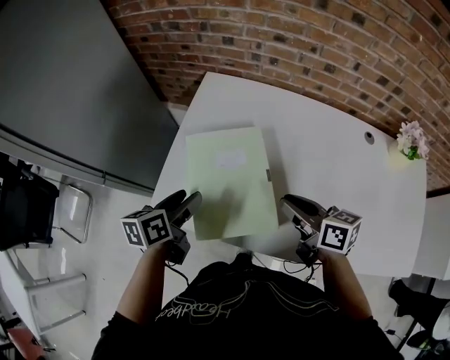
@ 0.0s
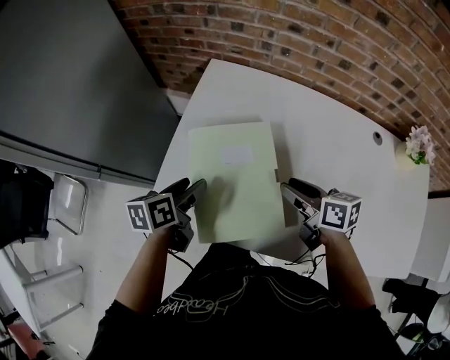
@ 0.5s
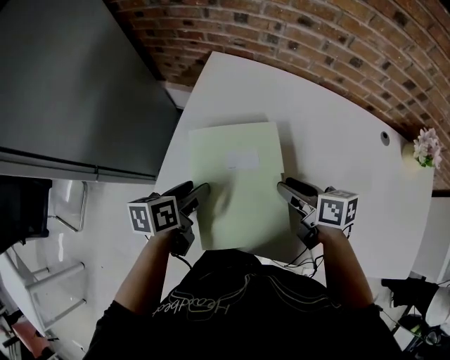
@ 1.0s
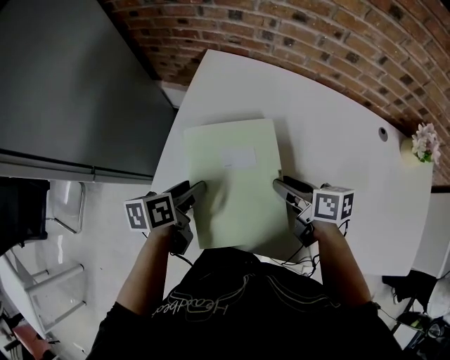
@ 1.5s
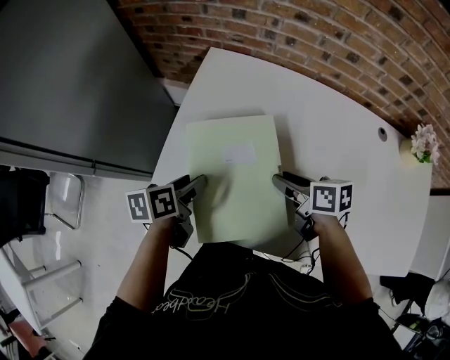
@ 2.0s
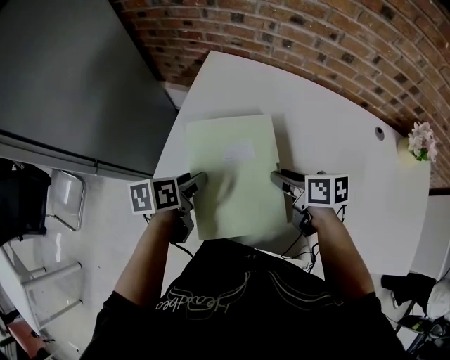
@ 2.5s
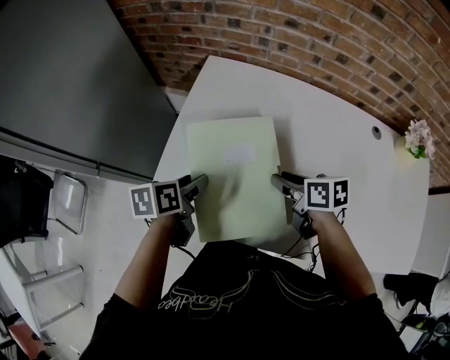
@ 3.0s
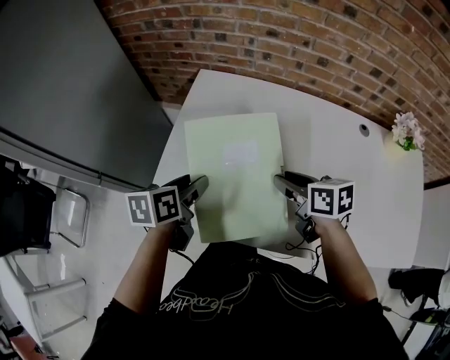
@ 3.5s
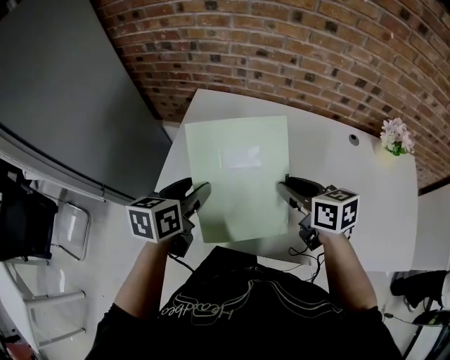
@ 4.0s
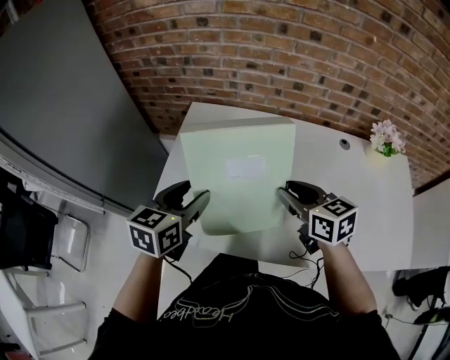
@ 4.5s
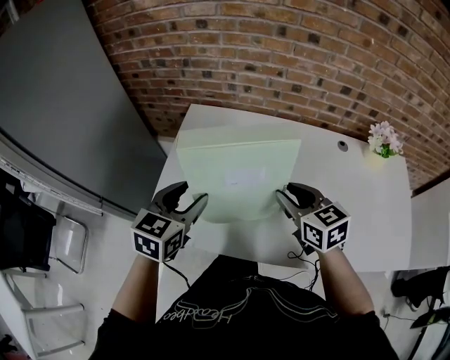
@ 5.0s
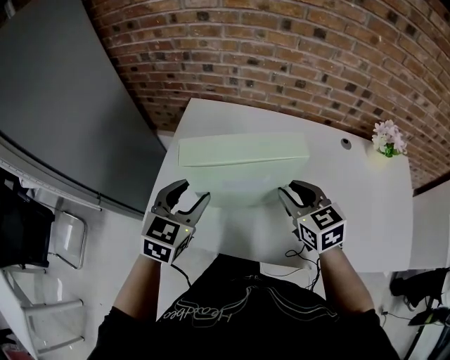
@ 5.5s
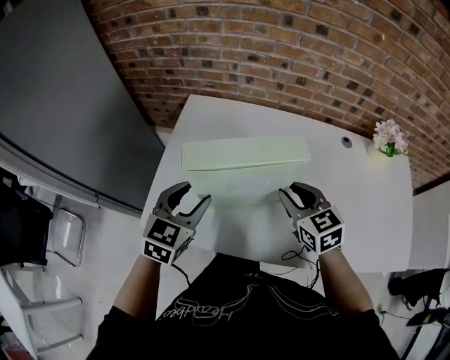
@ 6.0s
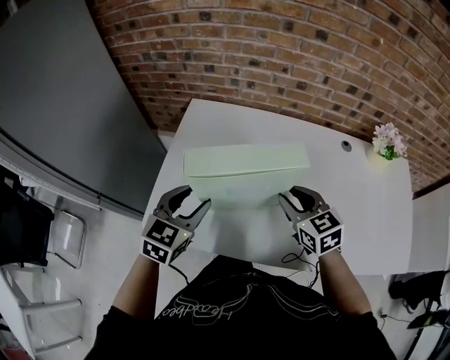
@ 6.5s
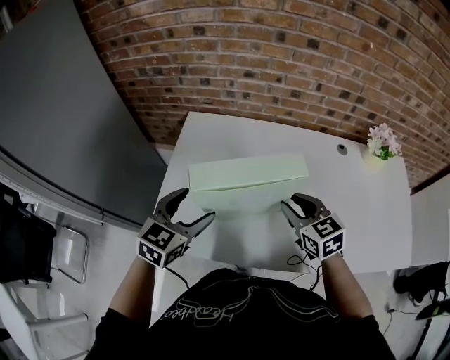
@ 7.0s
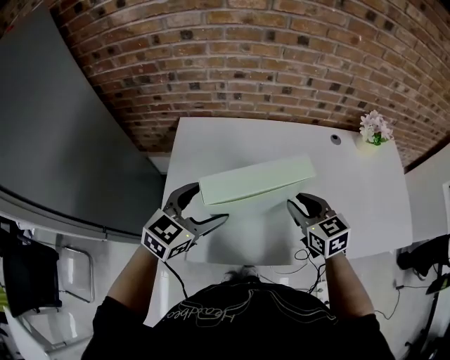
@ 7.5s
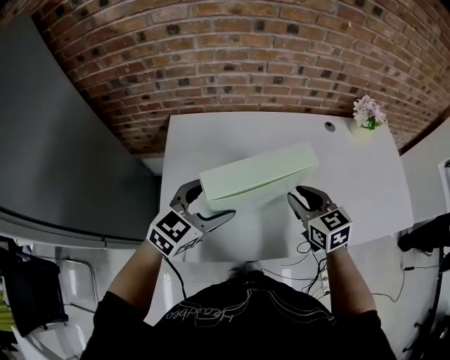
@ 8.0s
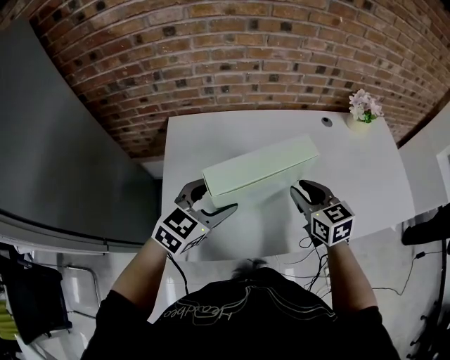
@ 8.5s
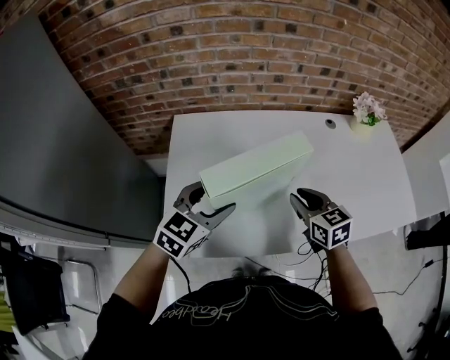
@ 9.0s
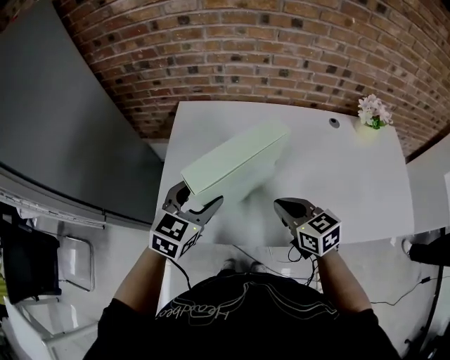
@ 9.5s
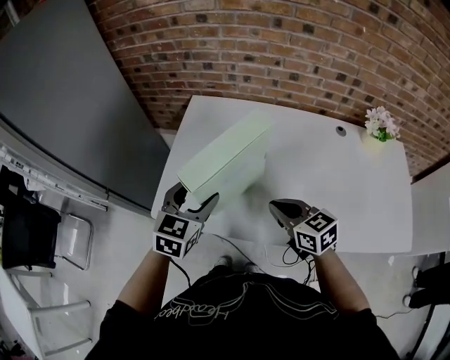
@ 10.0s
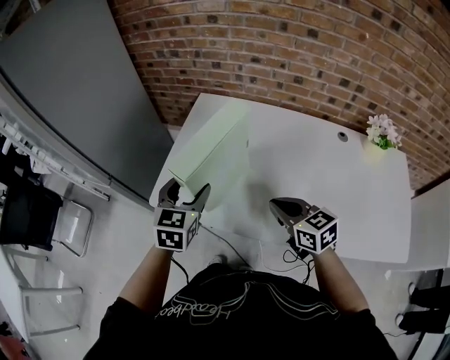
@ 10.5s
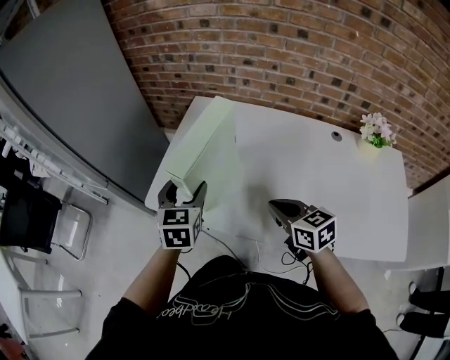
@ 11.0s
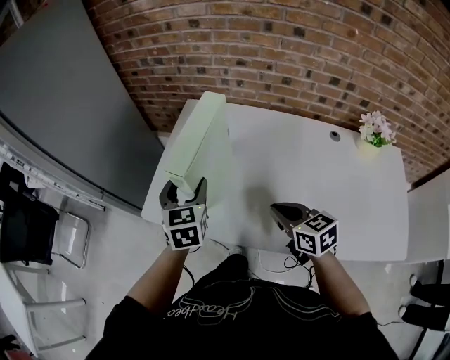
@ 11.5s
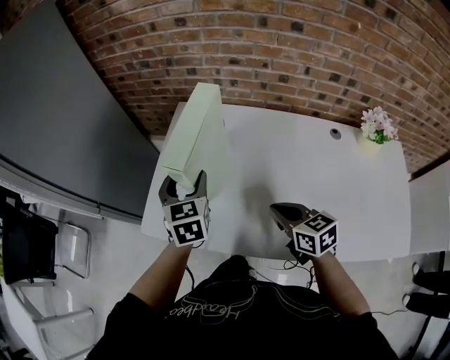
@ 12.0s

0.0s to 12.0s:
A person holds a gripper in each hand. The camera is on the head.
0.0s to 2.0s: The left gripper shifts some 5 cm downward, while the right gripper heads downward and forward, covering some 10 cm, and opens up.
2.0s to 4.0s: Both grippers move upward and to the right, some 15 cm. The left gripper swivels roughly 30 degrees, while the right gripper changes its angle by some 20 degrees.
4.0s to 6.0s: The left gripper rotates about 40 degrees. Meanwhile the right gripper changes its angle by roughly 30 degrees.
6.0s to 8.0s: The left gripper turns by roughly 30 degrees, and opens up.
8.0s to 10.0s: The right gripper ends up about 10 cm from where it was, rotates roughly 30 degrees, and closes its fingers; the left gripper shifts by about 5 cm, and swivels some 40 degrees.
10.0s to 12.0s: The right gripper shifts about 5 cm to the right; the left gripper is displaced forward by approximately 10 cm, and swivels some 30 degrees.

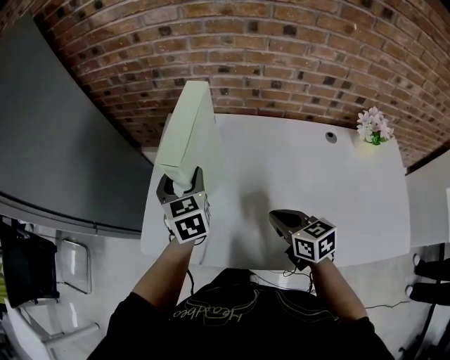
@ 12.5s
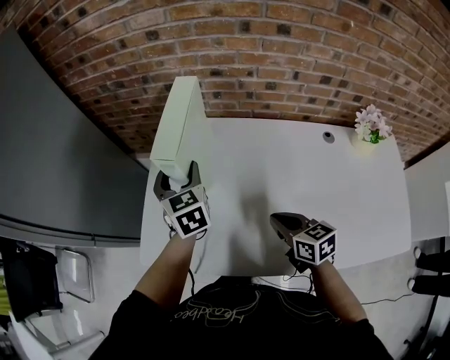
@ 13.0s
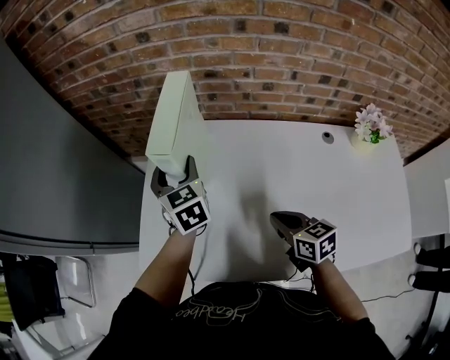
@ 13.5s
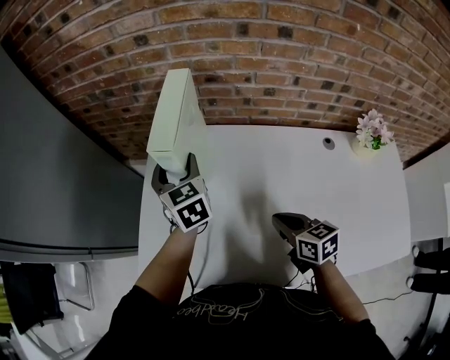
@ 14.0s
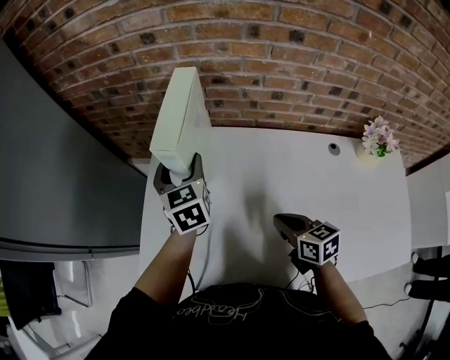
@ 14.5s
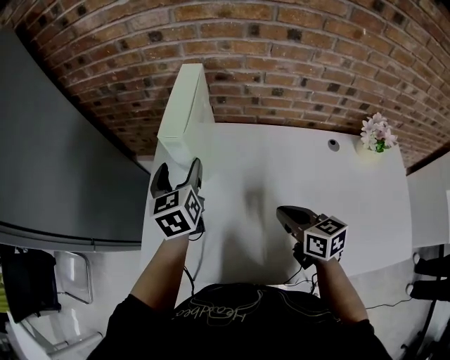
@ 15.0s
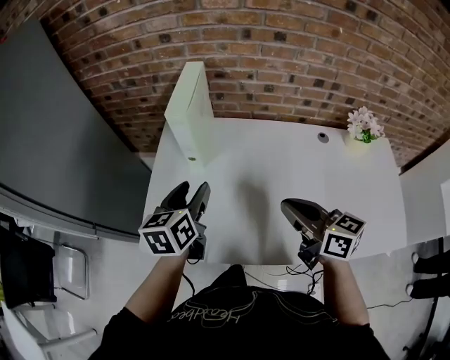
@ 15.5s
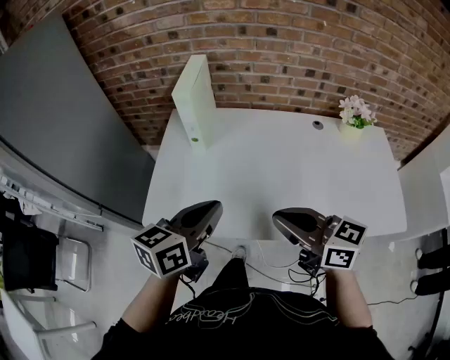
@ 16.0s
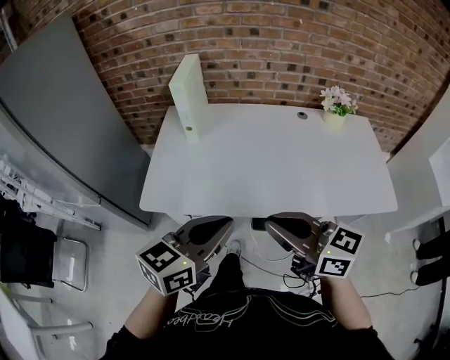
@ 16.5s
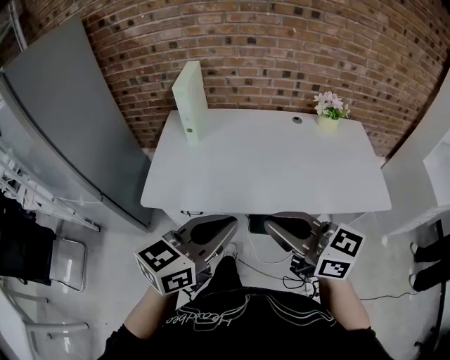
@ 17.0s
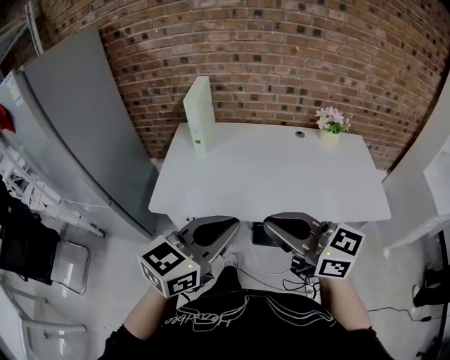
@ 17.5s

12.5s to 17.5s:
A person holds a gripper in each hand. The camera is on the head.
12.5s to 15.0s: The left gripper travels forward by some 5 cm. Meanwhile the right gripper ends up approximately 5 cm from where it was.
15.0s to 17.5s: The left gripper heads backward, covering approximately 50 cm, rotates approximately 50 degrees, and closes up, while the right gripper travels backward and upward by roughly 40 cm, and turns by some 40 degrees.

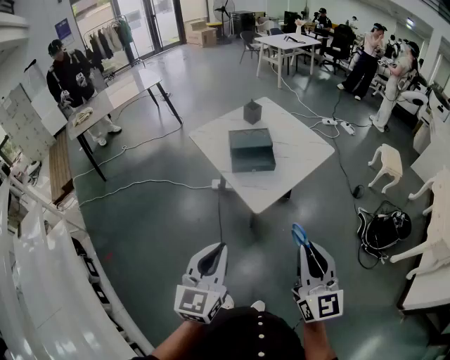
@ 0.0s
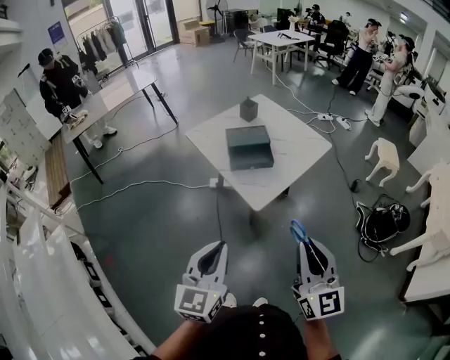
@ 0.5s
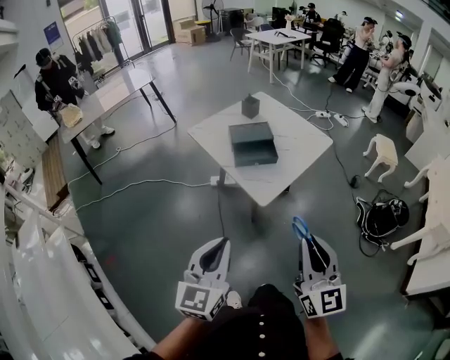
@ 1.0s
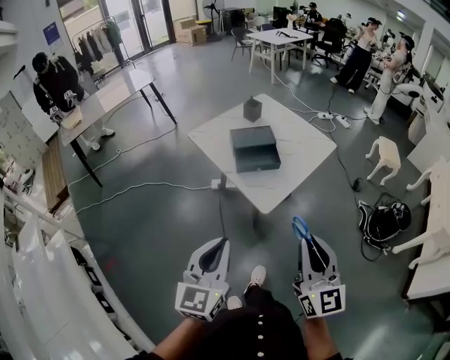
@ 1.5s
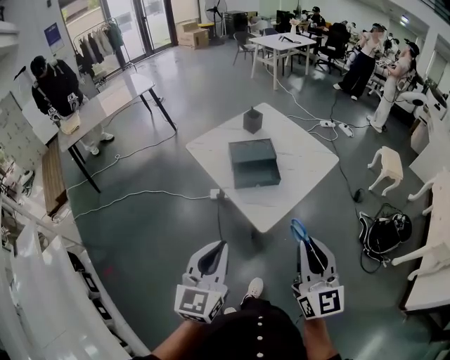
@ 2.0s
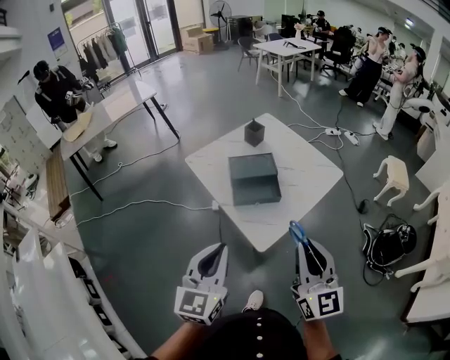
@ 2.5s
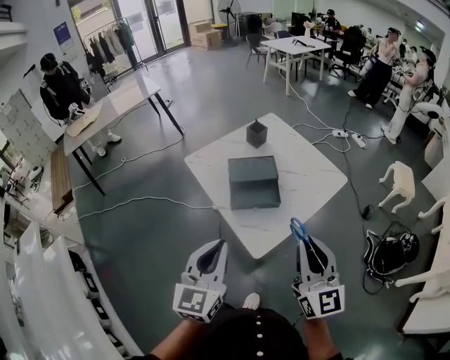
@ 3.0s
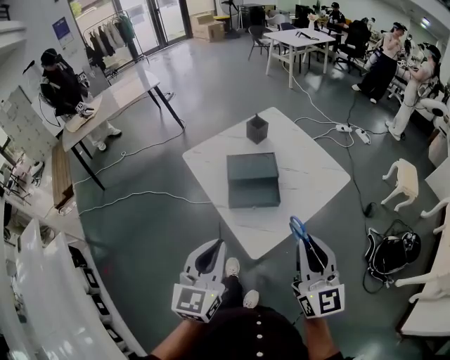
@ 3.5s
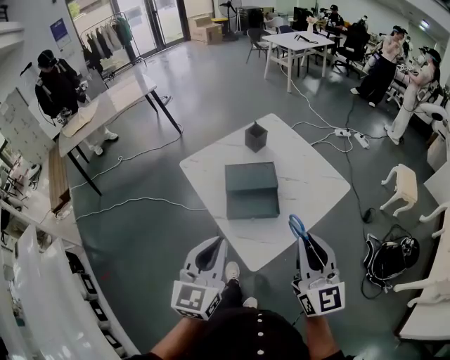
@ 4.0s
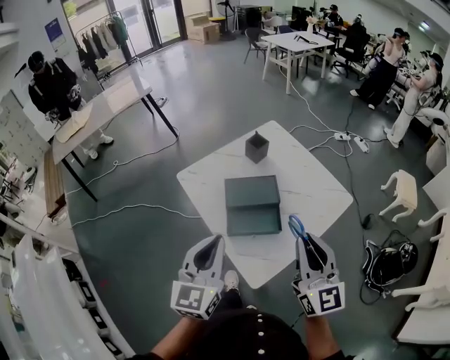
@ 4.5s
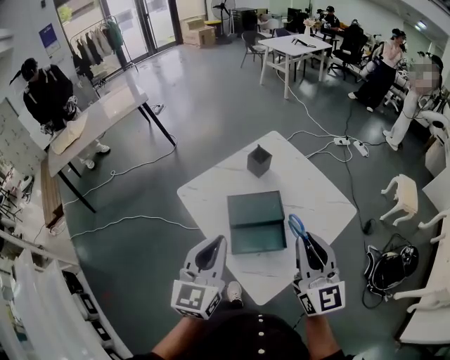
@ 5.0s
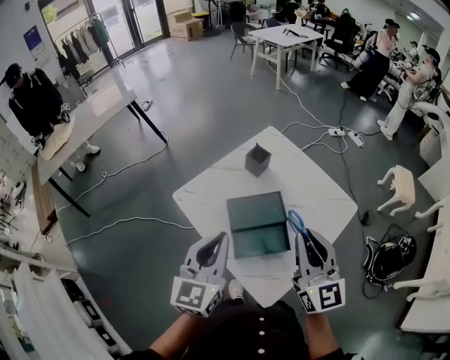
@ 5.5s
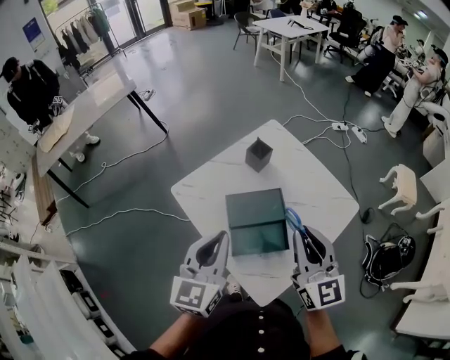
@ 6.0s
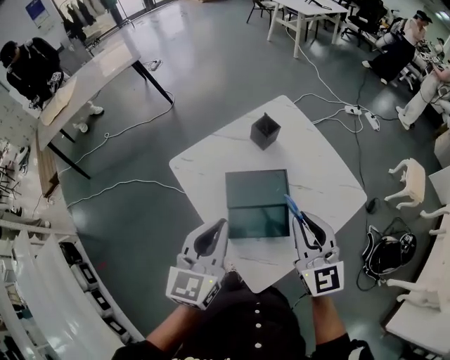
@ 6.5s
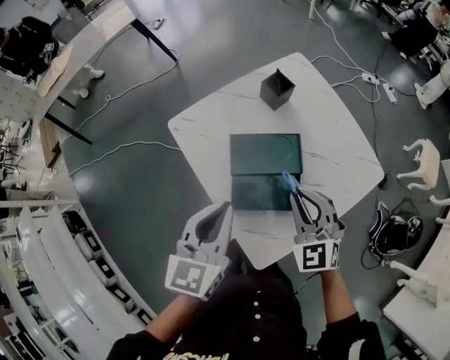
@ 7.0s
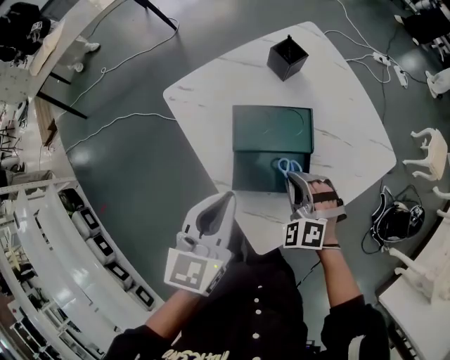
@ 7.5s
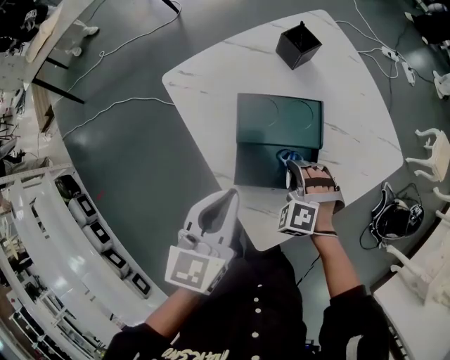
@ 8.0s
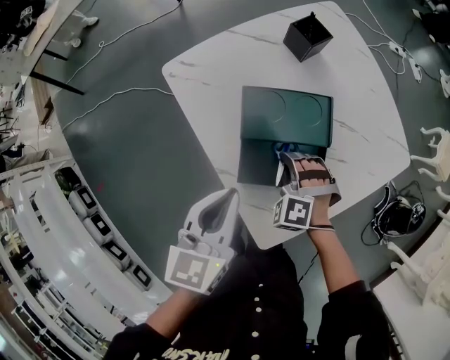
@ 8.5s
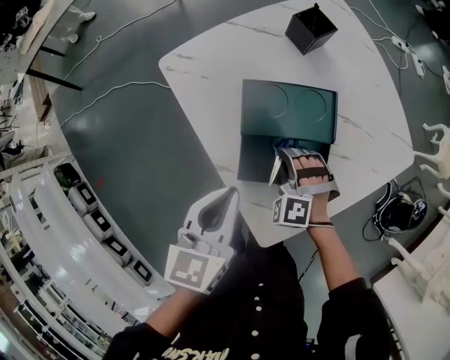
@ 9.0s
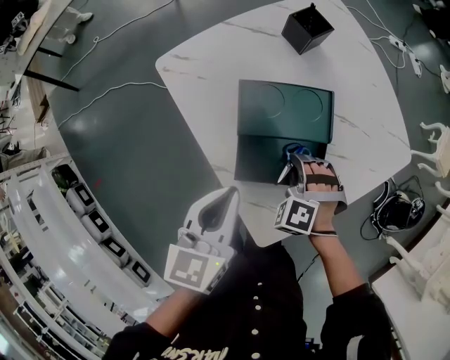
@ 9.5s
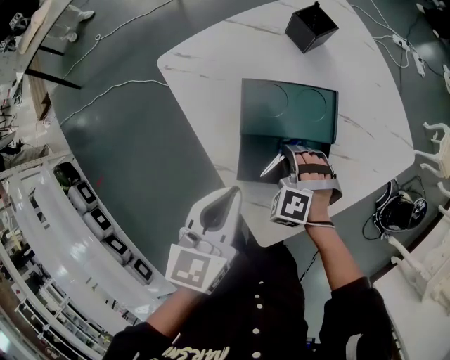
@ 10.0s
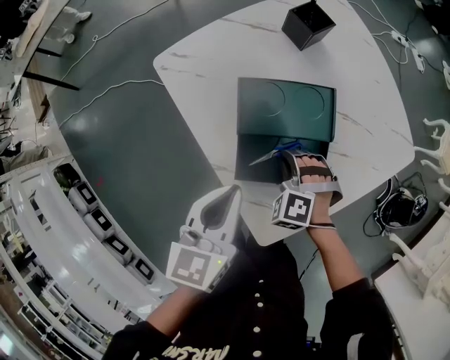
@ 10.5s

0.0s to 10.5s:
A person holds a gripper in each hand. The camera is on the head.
0.0s to 2.0s: The grippers both shift forward by about 10 cm.
2.0s to 4.0s: Both grippers move forward, about 20 cm.
4.0s to 6.5s: Both grippers travel together forward, roughly 25 cm.
6.5s to 8.5s: The left gripper goes roughly 15 cm downward. Meanwhile the right gripper is displaced downward by roughly 35 cm, and points its fingers some 50 degrees further downward.
8.5s to 10.5s: The grippers make only small movements.
